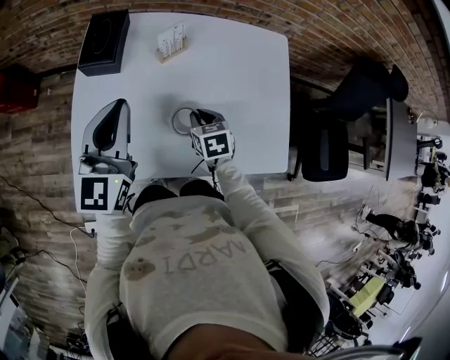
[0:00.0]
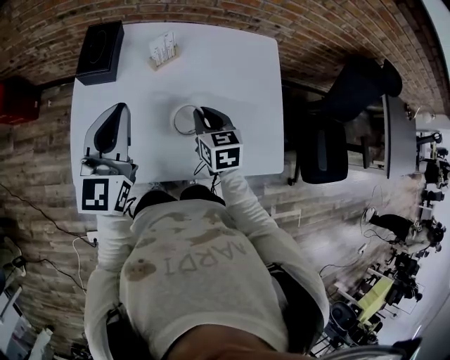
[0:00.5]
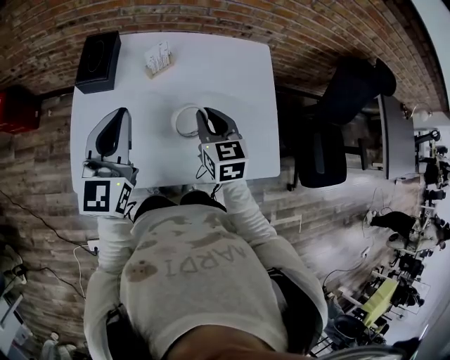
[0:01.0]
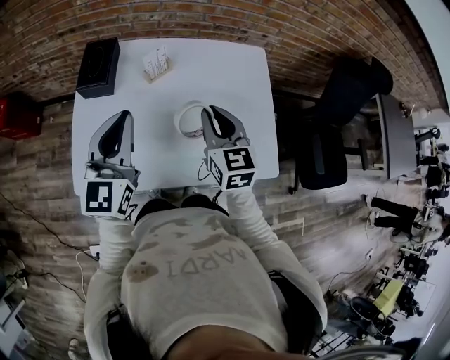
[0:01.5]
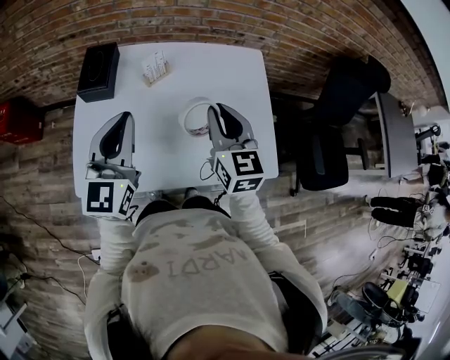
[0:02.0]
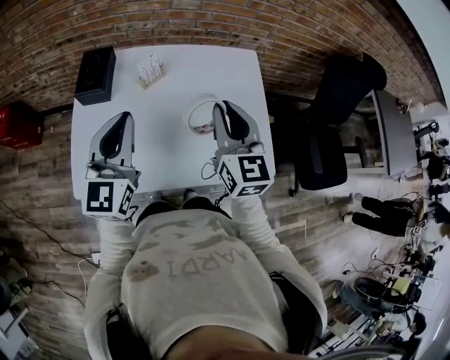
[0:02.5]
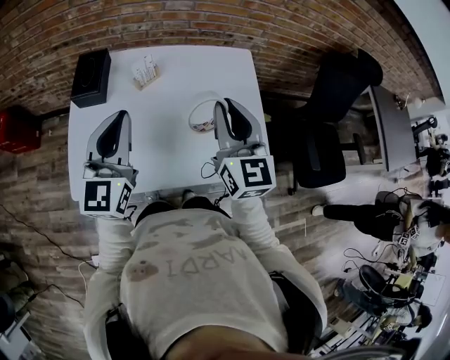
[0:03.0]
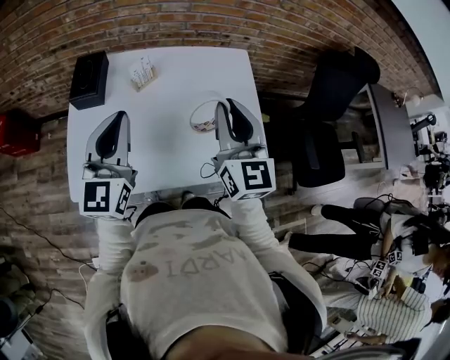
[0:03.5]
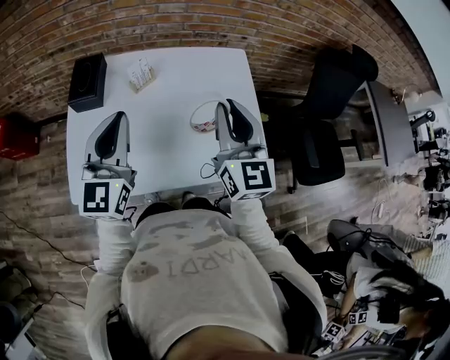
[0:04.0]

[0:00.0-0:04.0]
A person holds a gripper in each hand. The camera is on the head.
0:00.0 to 0:02.0: The left gripper shifts roughly 5 cm to the right. Meanwhile the right gripper heads upward, covering about 25 cm, and points its fingers approximately 40 degrees further upward.
0:02.0 to 0:04.0: The right gripper heads upward and to the right, covering roughly 10 cm.

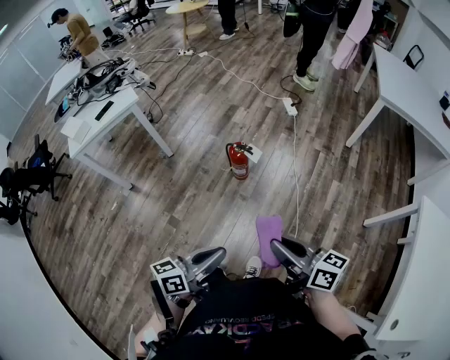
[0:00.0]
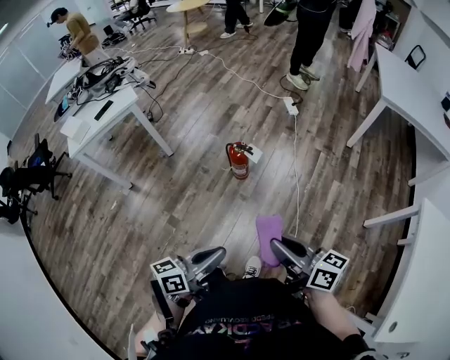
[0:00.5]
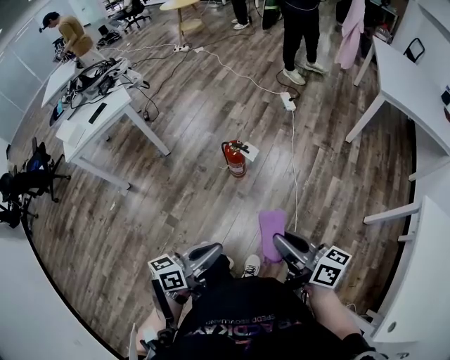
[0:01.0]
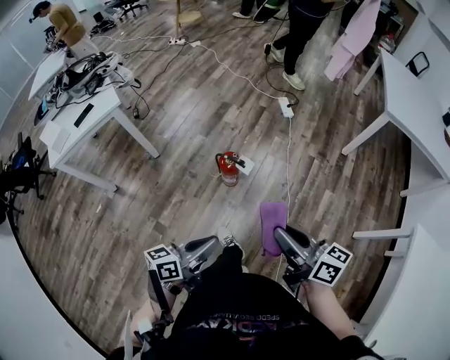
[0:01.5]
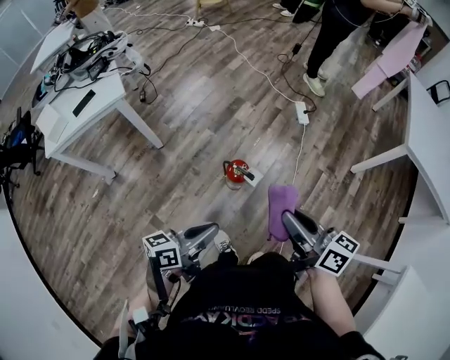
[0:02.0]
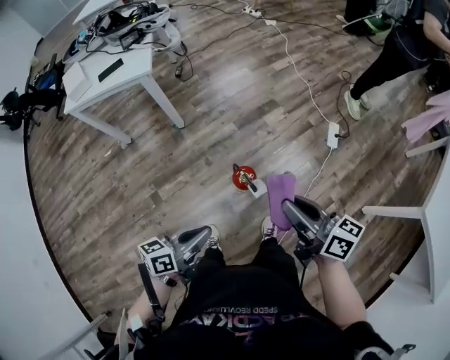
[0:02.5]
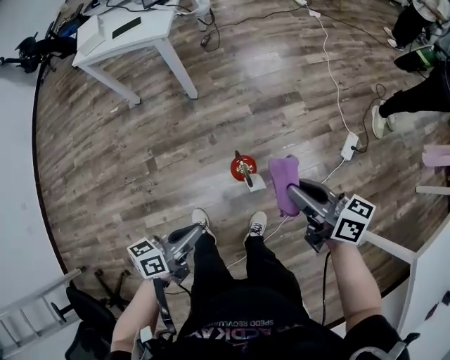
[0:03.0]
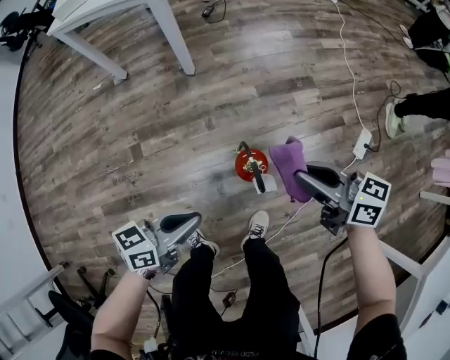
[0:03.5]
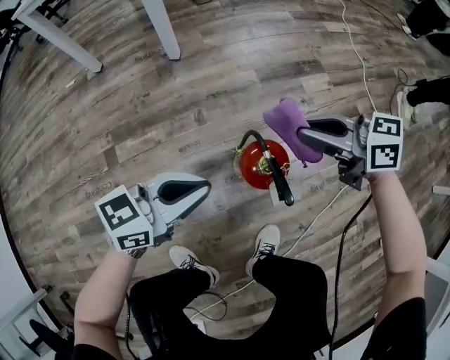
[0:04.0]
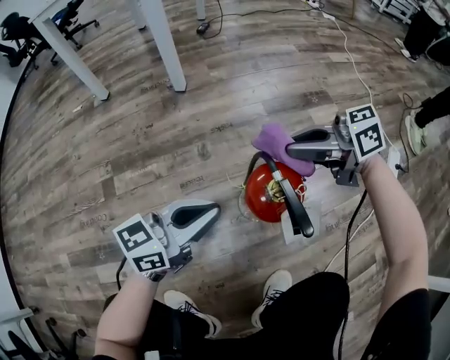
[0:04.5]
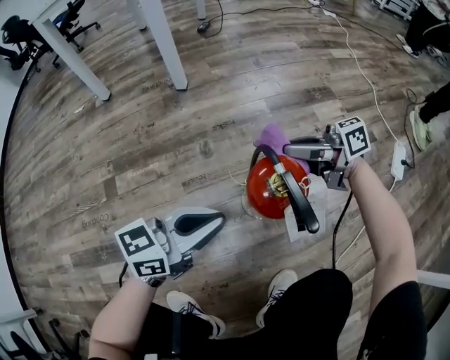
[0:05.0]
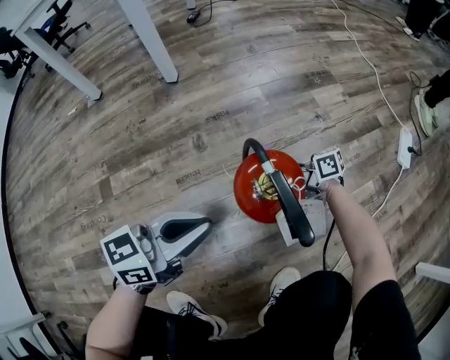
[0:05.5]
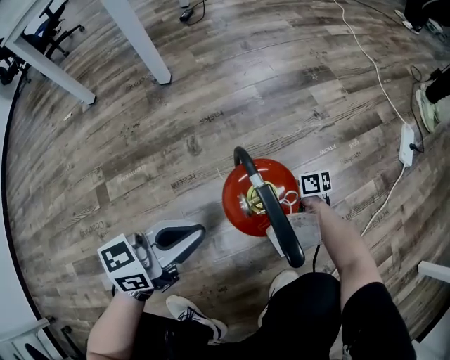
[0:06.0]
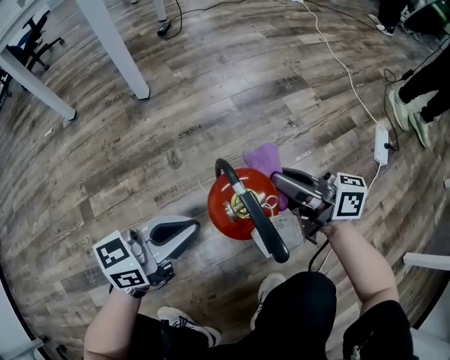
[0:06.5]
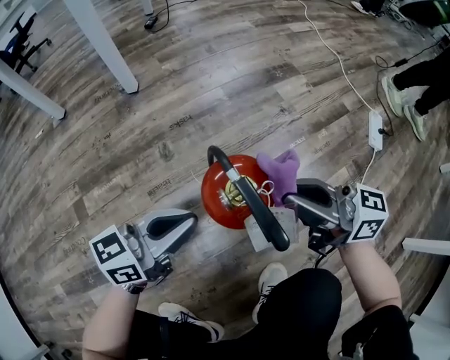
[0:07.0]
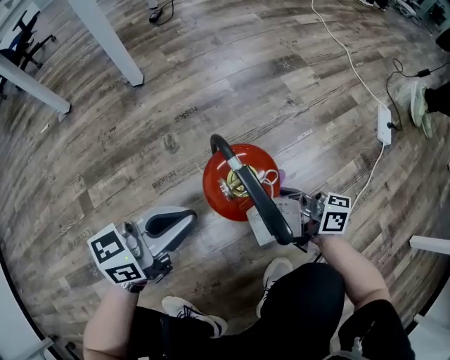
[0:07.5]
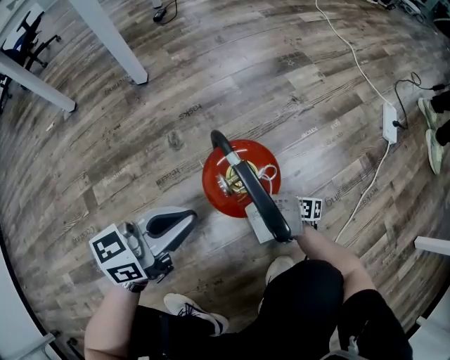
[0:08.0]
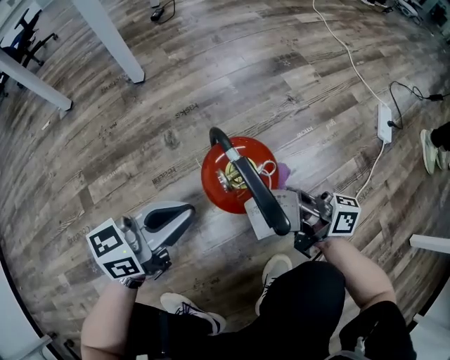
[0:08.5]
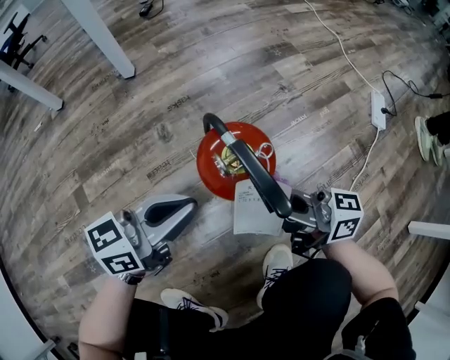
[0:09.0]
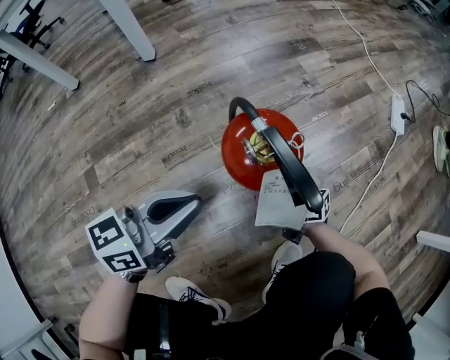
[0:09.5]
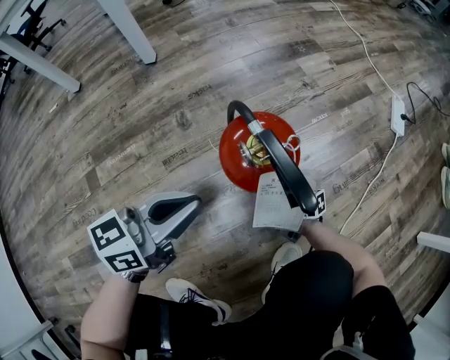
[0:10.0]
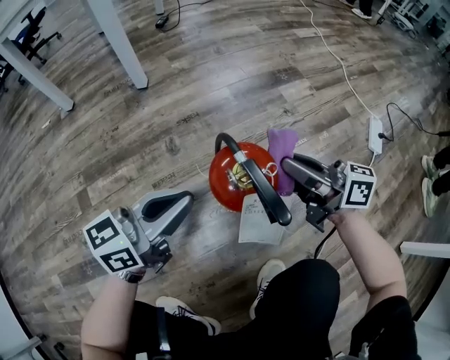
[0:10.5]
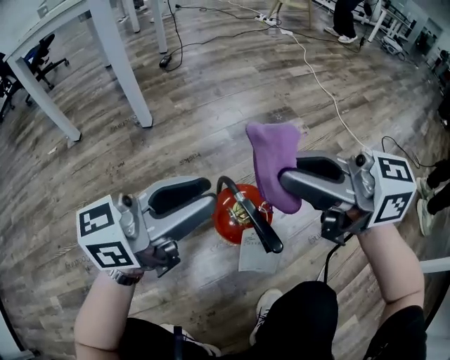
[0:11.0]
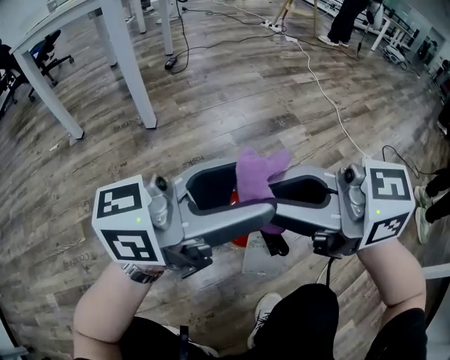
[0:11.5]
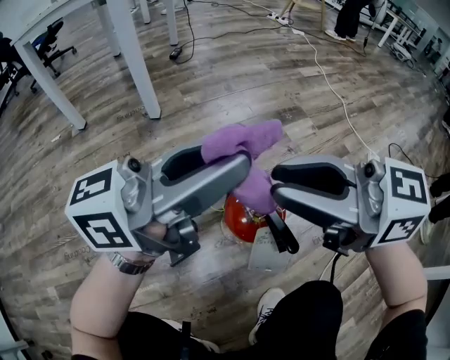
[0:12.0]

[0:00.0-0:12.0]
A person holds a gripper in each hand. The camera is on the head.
0:00.0 to 0:02.0: The two grippers go roughly 30 cm forward.
0:02.0 to 0:04.0: Both grippers travel together downward, some 40 cm. The right gripper rotates approximately 70 degrees. The left gripper swivels about 30 degrees.
0:04.0 to 0:06.0: The left gripper moves downward, roughly 15 cm, while the right gripper is displaced downward by about 50 cm, and changes its angle by roughly 40 degrees.
0:06.0 to 0:08.0: The right gripper shifts about 10 cm backward, moves approximately 35 cm upward and comes back, and rotates approximately 20 degrees.
0:08.0 to 0:10.0: The right gripper travels upward by about 10 cm.
0:10.0 to 0:12.0: The left gripper moves upward, about 25 cm, rotates roughly 30 degrees, and opens, while the right gripper travels upward by some 40 cm, and twists some 50 degrees counterclockwise, seen from behind.

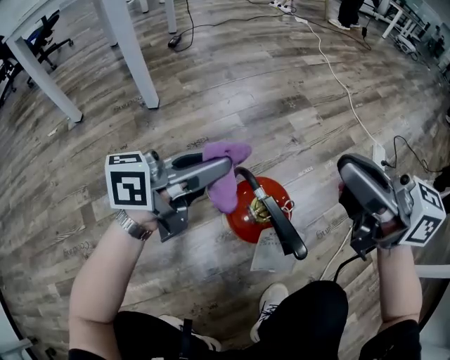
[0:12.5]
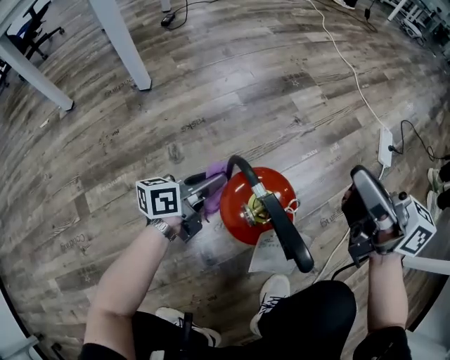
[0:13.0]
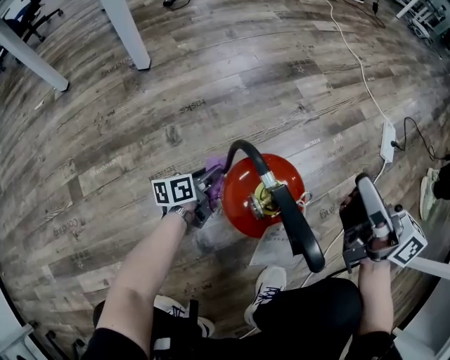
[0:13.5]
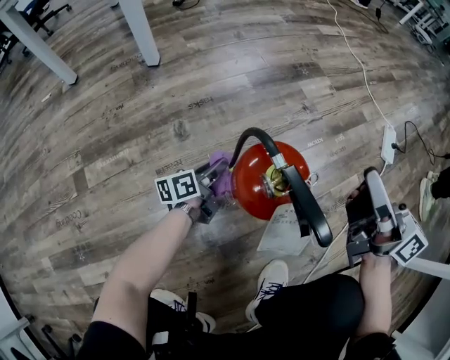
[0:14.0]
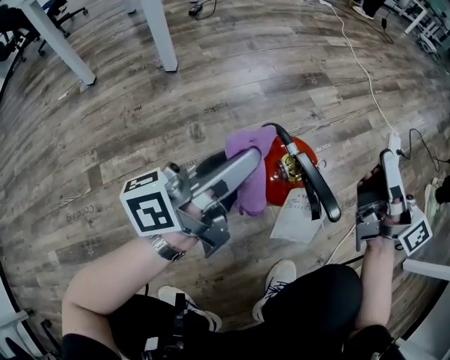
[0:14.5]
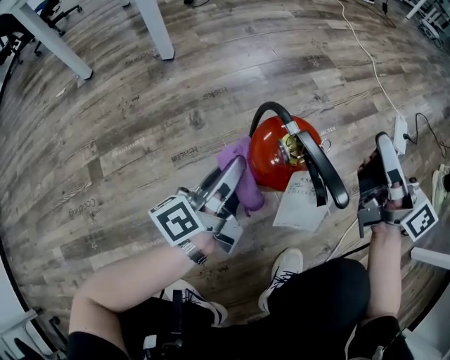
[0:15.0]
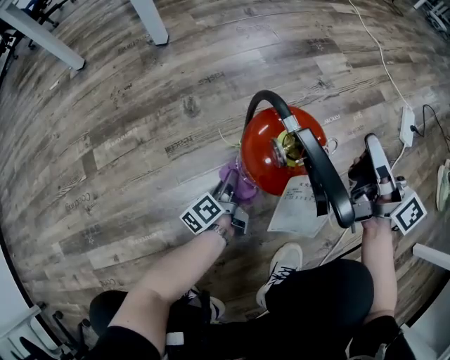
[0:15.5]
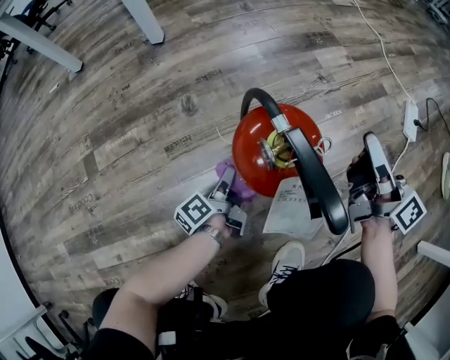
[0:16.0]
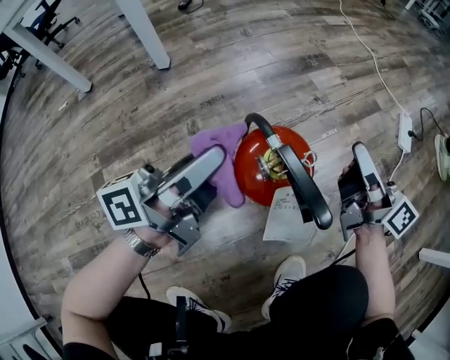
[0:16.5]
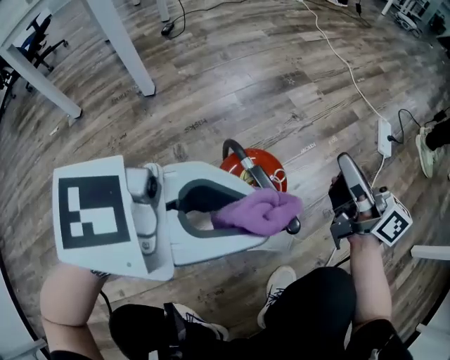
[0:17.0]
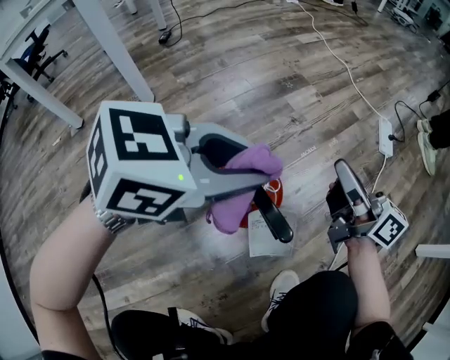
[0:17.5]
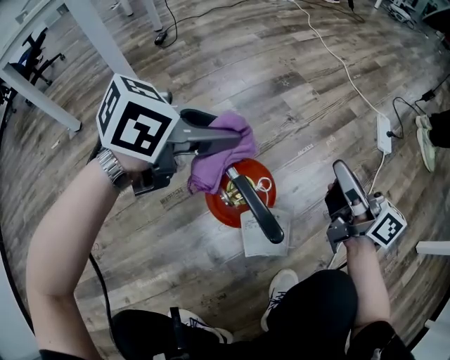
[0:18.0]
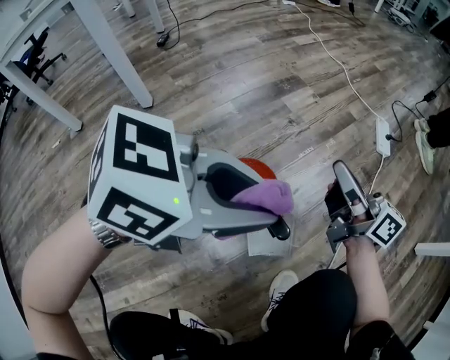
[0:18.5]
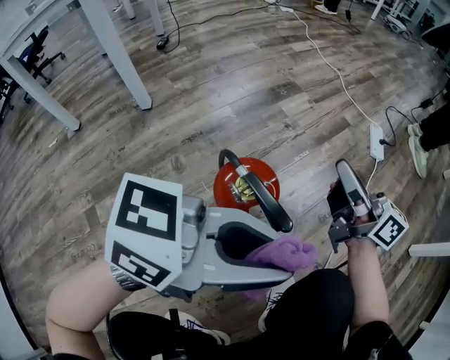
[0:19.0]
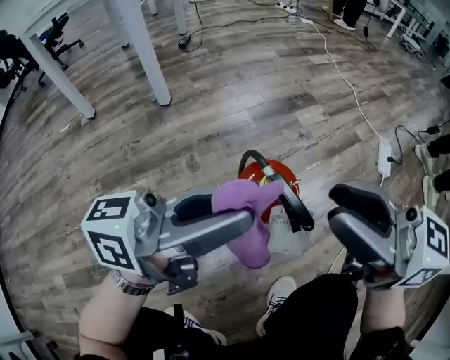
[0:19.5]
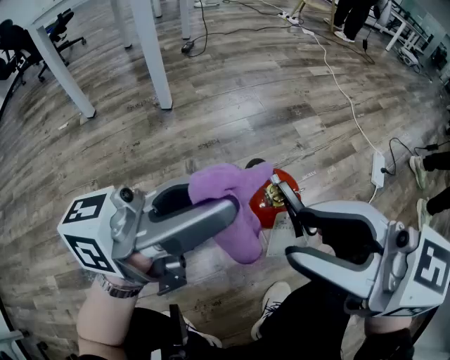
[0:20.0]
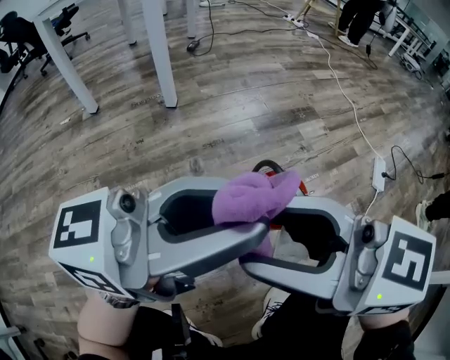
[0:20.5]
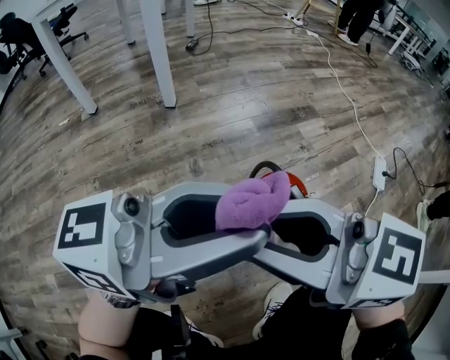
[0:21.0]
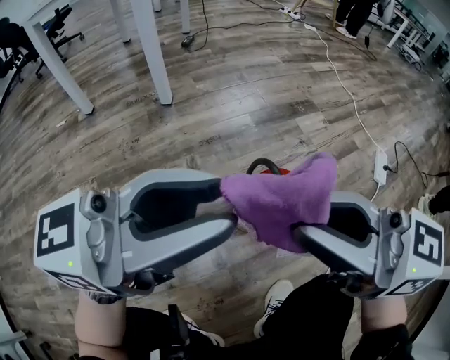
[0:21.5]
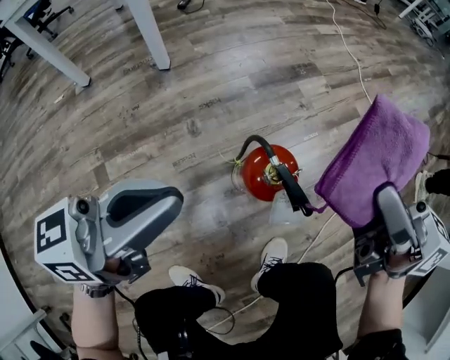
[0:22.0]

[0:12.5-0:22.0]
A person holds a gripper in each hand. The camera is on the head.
0:12.5 to 0:14.5: The left gripper is displaced backward by some 5 cm, travels downward and back again, roughly 35 cm each way, and changes its angle by some 20 degrees; the right gripper is displaced to the right and downward by approximately 10 cm, and rotates roughly 30 degrees.
0:14.5 to 0:16.5: The right gripper moves downward, some 10 cm; the left gripper reaches approximately 40 cm downward, then returns.
0:16.5 to 0:18.0: The left gripper travels forward and to the right by approximately 10 cm, and tips its fingers downward by roughly 40 degrees.
0:18.0 to 0:20.0: The right gripper shifts by about 30 cm, turns by about 50 degrees, and opens. The left gripper shifts by approximately 20 cm, and tips its fingers upward by some 50 degrees.
0:20.0 to 0:22.0: The right gripper moves approximately 15 cm, and changes its angle by about 40 degrees; the left gripper ends up roughly 5 cm from where it was, changes its angle by roughly 20 degrees, and closes its fingers.

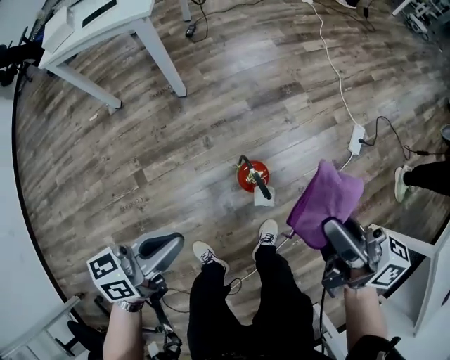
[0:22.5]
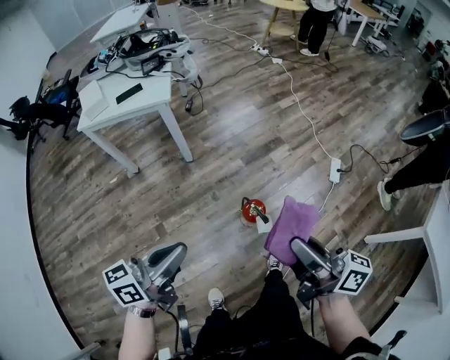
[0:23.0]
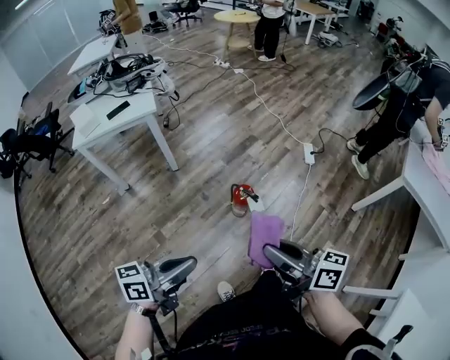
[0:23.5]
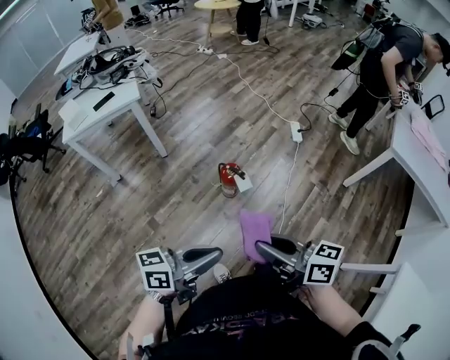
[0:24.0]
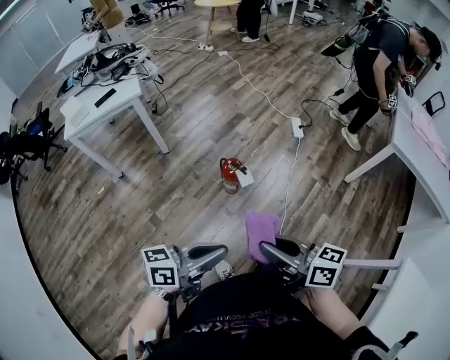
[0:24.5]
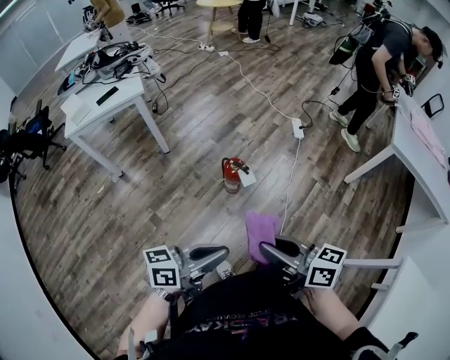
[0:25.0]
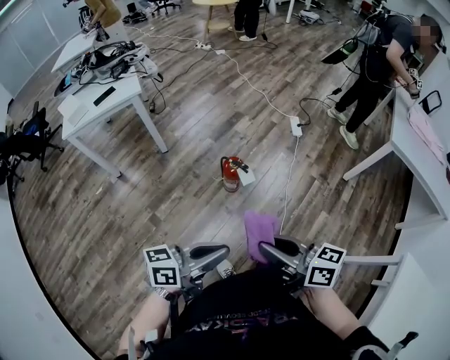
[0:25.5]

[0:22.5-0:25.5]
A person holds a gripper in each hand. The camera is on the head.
0:22.5 to 0:24.0: Both grippers travel together backward and upward, about 35 cm. The left gripper rotates approximately 40 degrees.
0:24.0 to 0:25.5: The grippers make only small movements.
